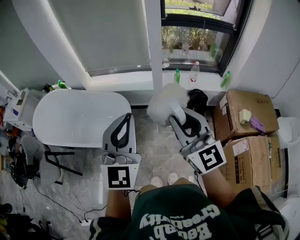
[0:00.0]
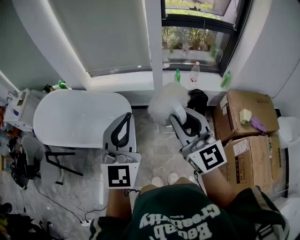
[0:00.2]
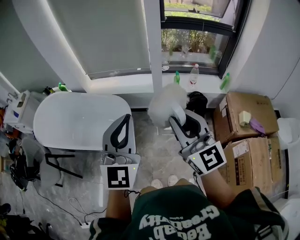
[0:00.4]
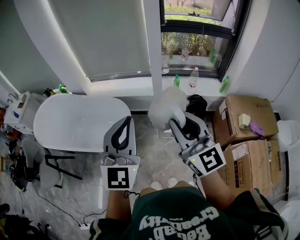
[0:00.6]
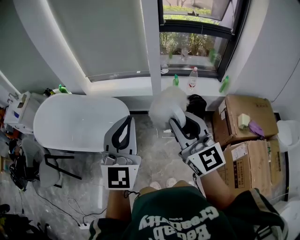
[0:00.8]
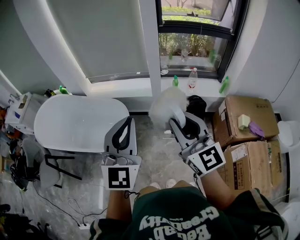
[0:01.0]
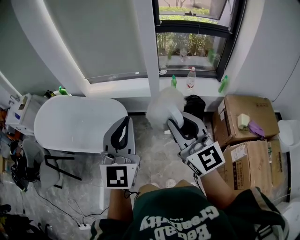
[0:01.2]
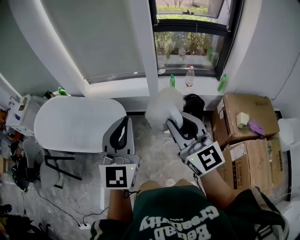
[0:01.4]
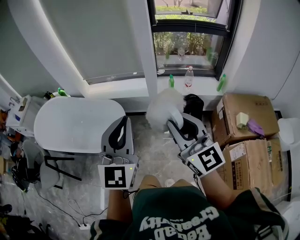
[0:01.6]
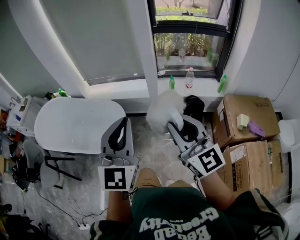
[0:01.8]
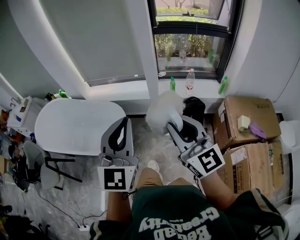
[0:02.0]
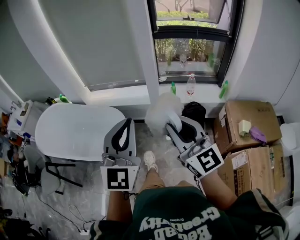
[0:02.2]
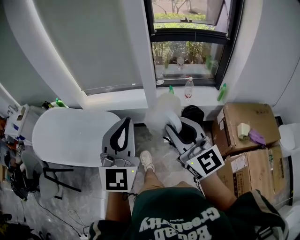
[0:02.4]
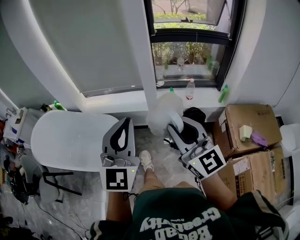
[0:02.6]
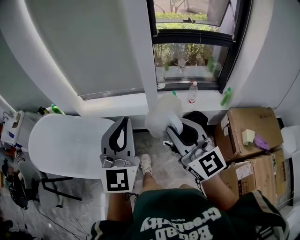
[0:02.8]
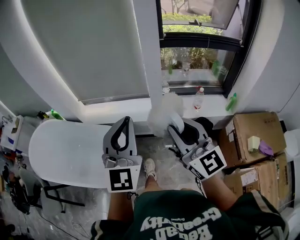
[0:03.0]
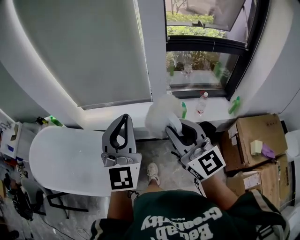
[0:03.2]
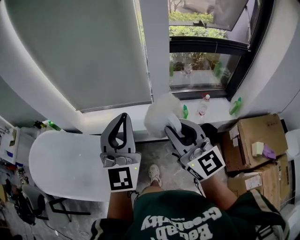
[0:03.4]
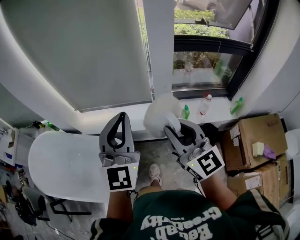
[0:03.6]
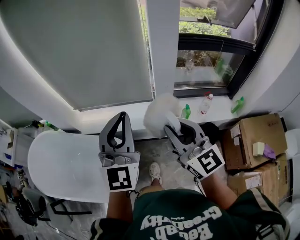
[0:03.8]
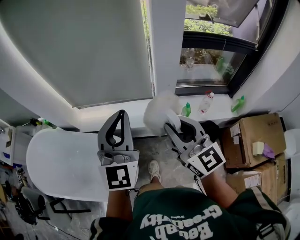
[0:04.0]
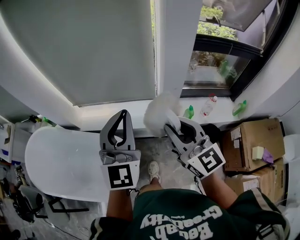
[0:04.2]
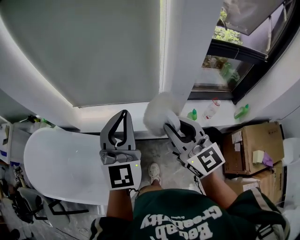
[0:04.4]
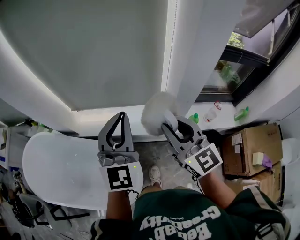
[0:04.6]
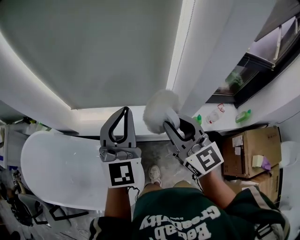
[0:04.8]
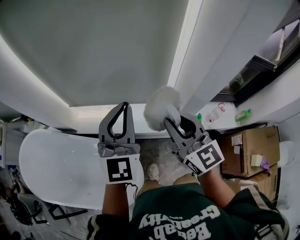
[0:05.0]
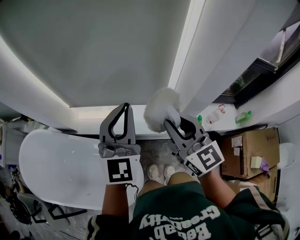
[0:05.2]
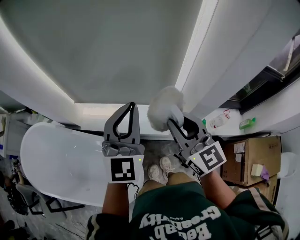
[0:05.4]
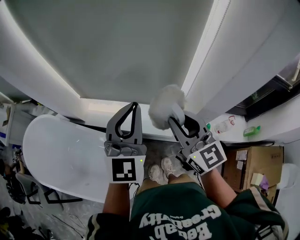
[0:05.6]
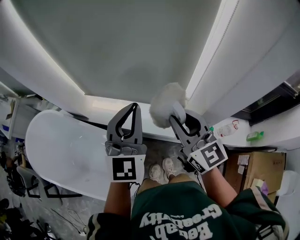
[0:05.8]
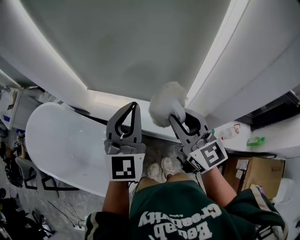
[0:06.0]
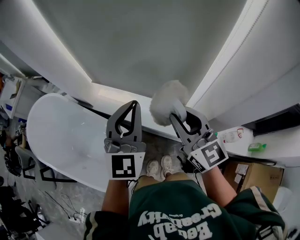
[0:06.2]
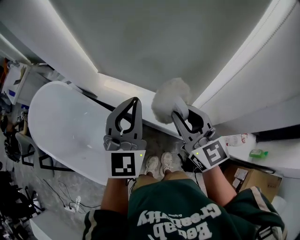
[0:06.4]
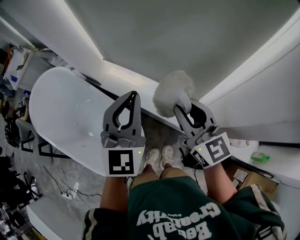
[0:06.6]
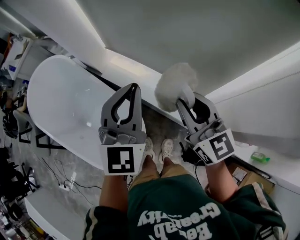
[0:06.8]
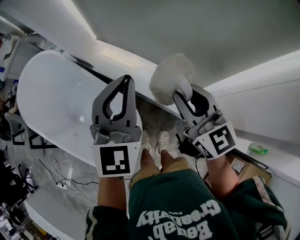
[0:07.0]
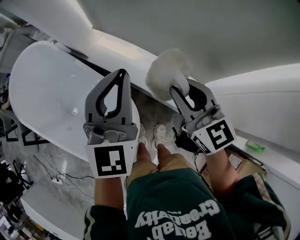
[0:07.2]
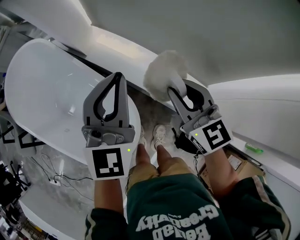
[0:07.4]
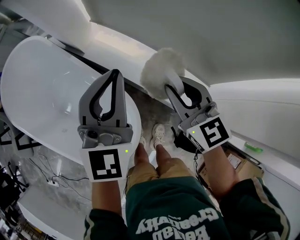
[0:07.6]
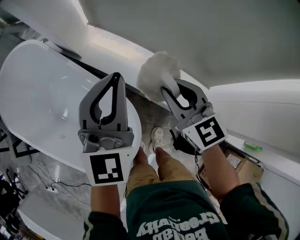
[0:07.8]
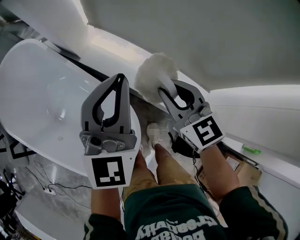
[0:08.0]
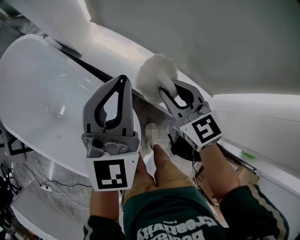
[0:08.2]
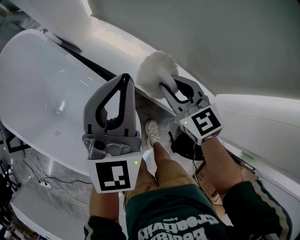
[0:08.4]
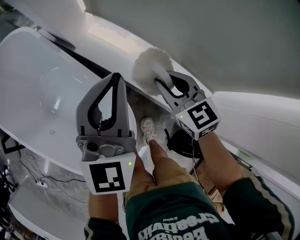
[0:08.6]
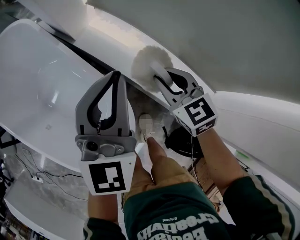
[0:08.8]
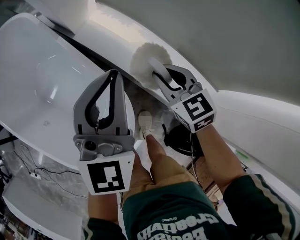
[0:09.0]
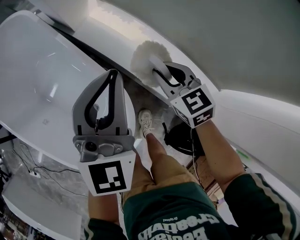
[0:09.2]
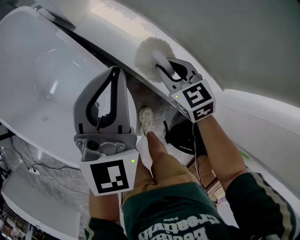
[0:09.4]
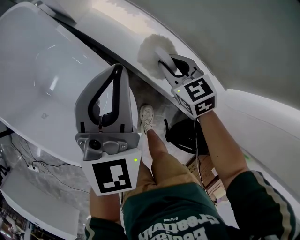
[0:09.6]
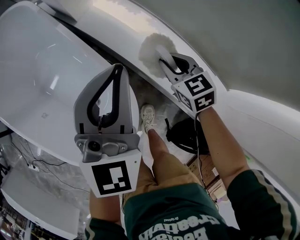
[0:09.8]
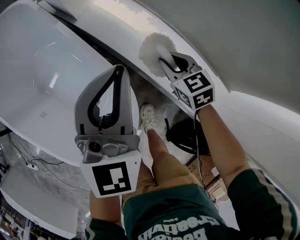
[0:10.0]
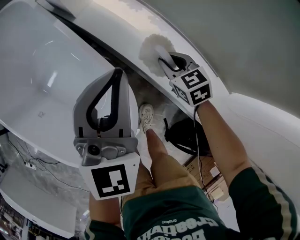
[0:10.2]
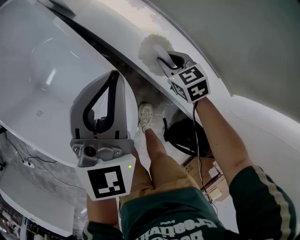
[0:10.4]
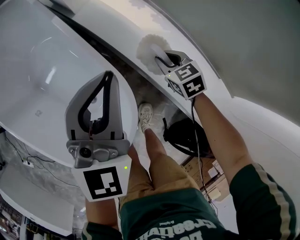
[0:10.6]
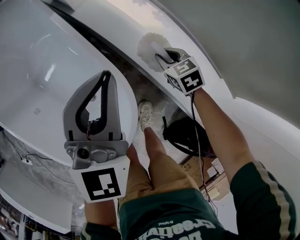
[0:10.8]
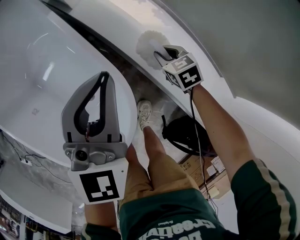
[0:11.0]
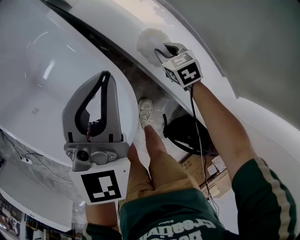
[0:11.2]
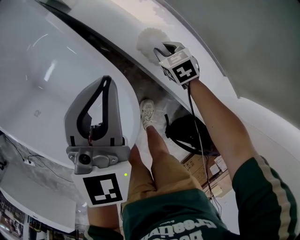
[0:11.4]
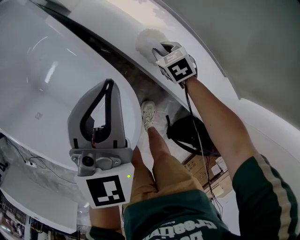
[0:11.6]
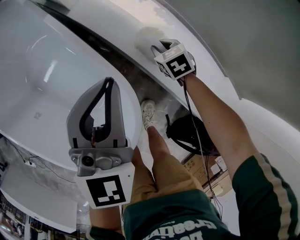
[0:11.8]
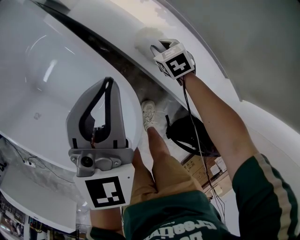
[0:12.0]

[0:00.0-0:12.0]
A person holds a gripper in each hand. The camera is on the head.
0:00.0 to 0:01.6: Both grippers move to the right, about 5 cm.
0:01.6 to 0:03.0: Both grippers move forward, about 25 cm.
0:03.0 to 0:04.4: The two grippers go approximately 25 cm forward.
0:04.4 to 0:06.0: The grippers both shift forward by some 15 cm.
0:06.0 to 0:07.6: The two grippers go about 25 cm downward, to the left and forward. The right gripper changes its angle by some 30 degrees.
0:07.6 to 0:09.0: The right gripper goes approximately 15 cm downward. The left gripper goes approximately 10 cm downward.
0:09.0 to 0:10.4: The left gripper goes roughly 10 cm downward, while the right gripper goes approximately 15 cm downward.
0:10.4 to 0:12.0: The left gripper changes place by about 5 cm. Meanwhile the right gripper heads downward and forward, covering approximately 10 cm.

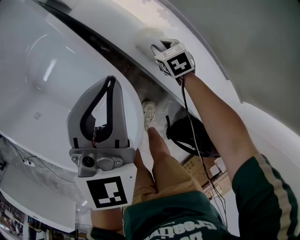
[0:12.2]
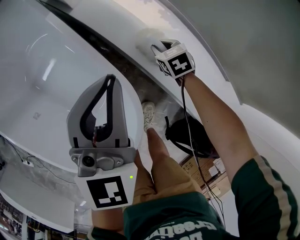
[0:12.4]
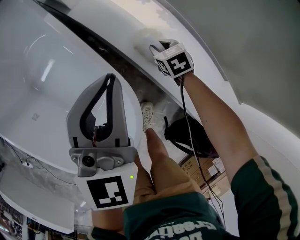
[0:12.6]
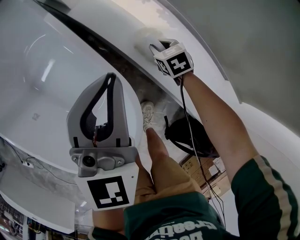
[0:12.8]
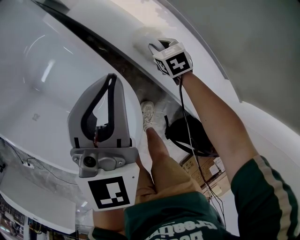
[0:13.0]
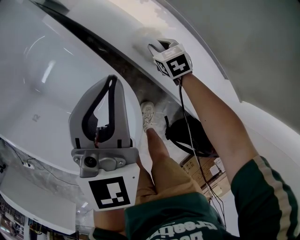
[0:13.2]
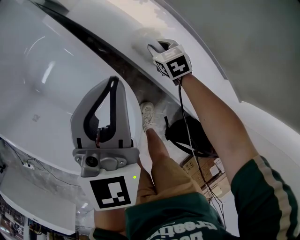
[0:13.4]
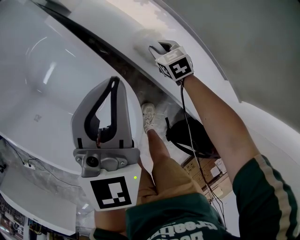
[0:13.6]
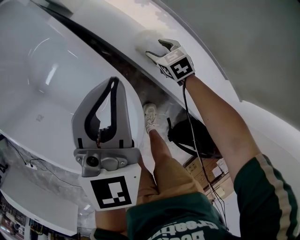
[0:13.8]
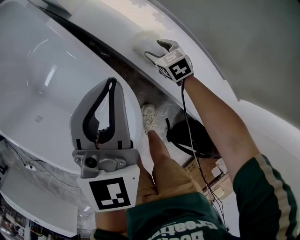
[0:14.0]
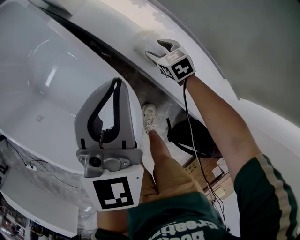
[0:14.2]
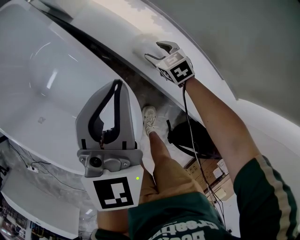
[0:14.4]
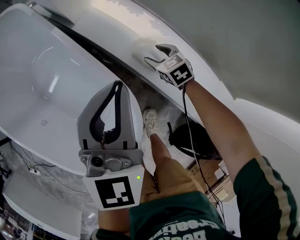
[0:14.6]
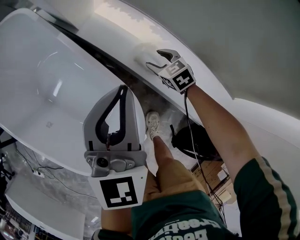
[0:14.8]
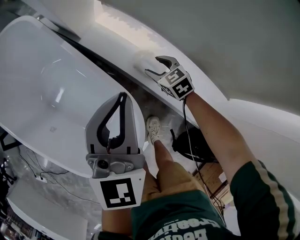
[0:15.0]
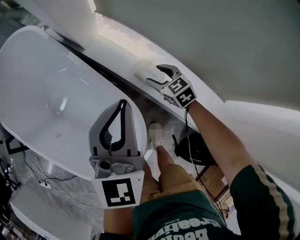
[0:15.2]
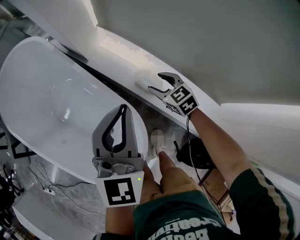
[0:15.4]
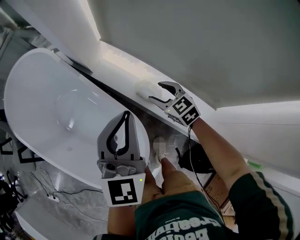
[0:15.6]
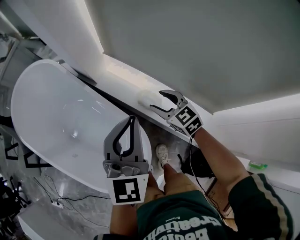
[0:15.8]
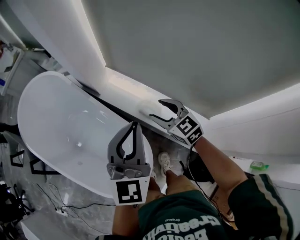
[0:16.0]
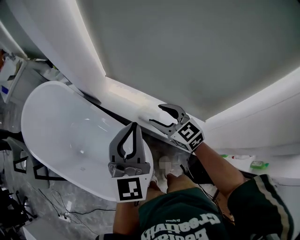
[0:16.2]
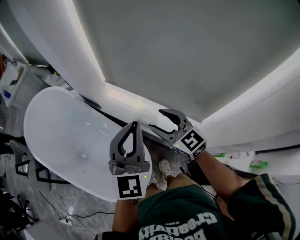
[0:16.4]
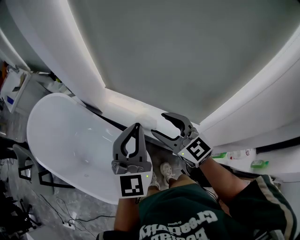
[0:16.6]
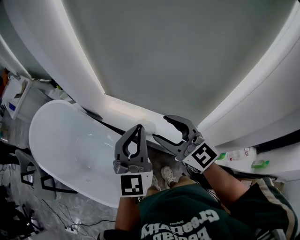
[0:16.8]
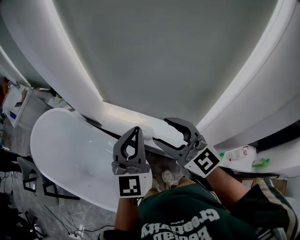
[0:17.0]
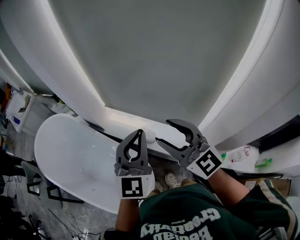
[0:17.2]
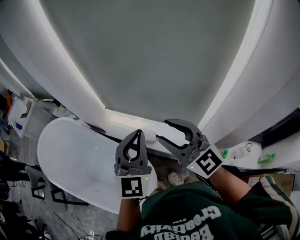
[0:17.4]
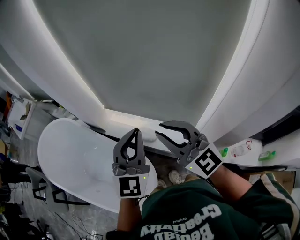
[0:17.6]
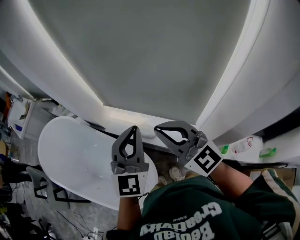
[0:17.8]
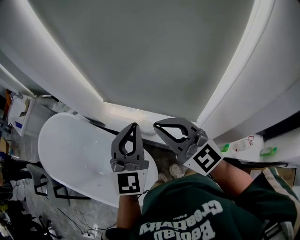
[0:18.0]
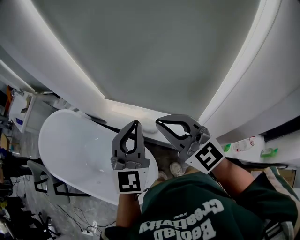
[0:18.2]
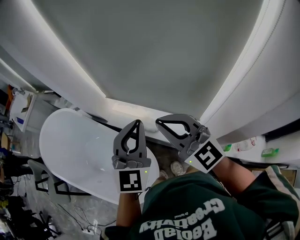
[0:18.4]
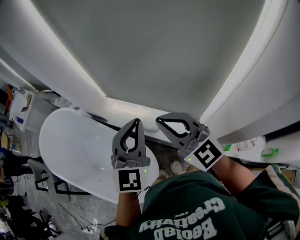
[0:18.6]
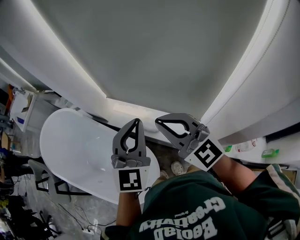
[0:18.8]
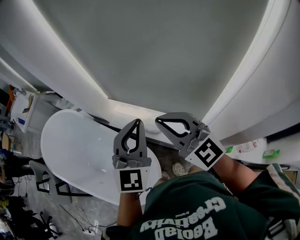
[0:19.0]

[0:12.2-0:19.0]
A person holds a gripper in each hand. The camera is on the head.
0:12.2 to 0:13.6: There are only small adjustments of the grippers.
0:13.6 to 0:15.0: The grippers both shift upward by approximately 10 cm. The right gripper opens.
0:15.0 to 0:16.2: The left gripper travels upward by some 20 cm. Meanwhile the right gripper travels upward by about 35 cm, and changes its angle by some 30 degrees.
0:16.2 to 0:17.6: The left gripper shifts about 10 cm upward and to the right. The right gripper is displaced upward and backward by some 25 cm, swivels approximately 30 degrees, and closes its fingers.
0:17.6 to 0:19.0: The grippers move only a little.

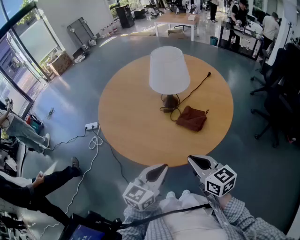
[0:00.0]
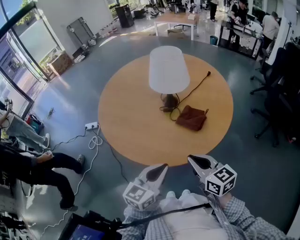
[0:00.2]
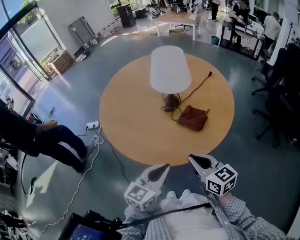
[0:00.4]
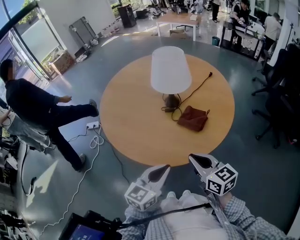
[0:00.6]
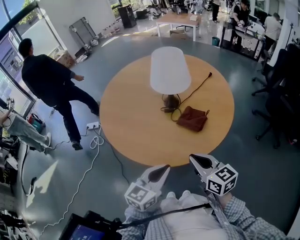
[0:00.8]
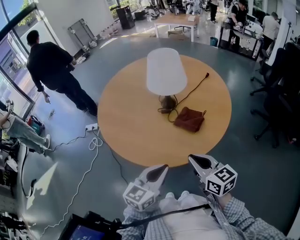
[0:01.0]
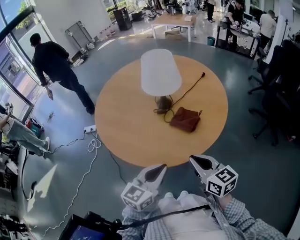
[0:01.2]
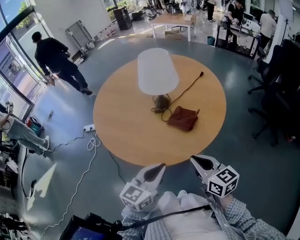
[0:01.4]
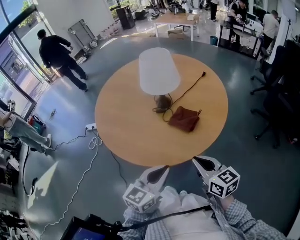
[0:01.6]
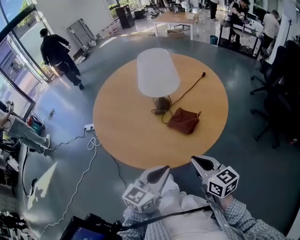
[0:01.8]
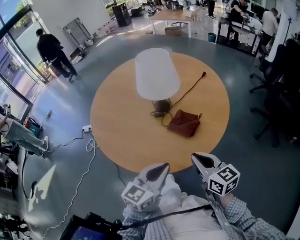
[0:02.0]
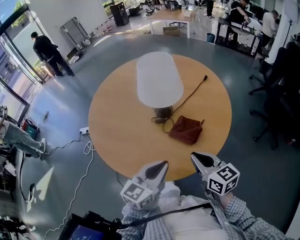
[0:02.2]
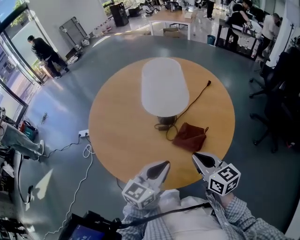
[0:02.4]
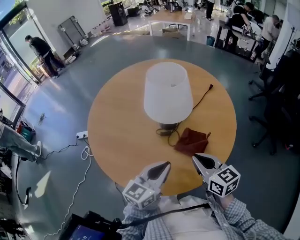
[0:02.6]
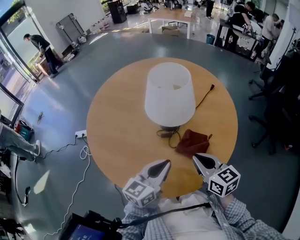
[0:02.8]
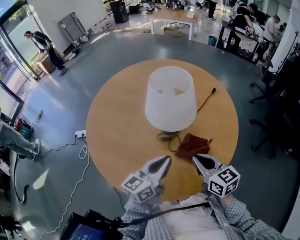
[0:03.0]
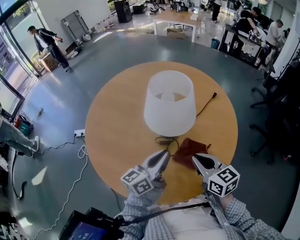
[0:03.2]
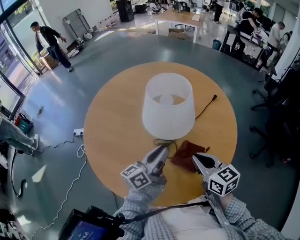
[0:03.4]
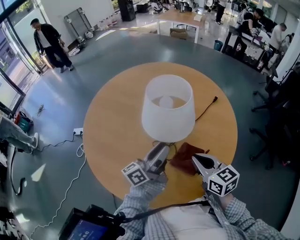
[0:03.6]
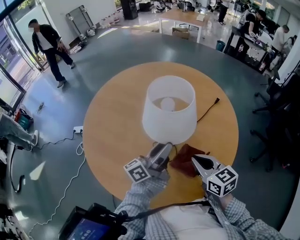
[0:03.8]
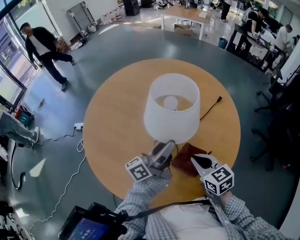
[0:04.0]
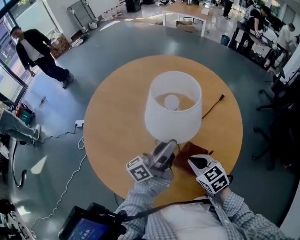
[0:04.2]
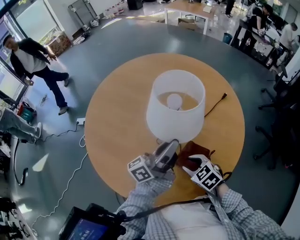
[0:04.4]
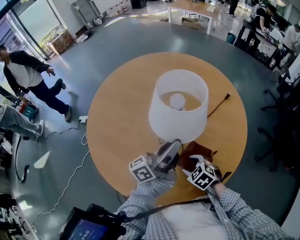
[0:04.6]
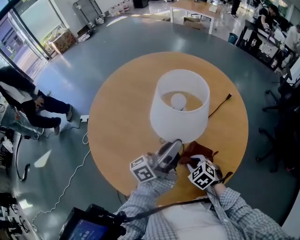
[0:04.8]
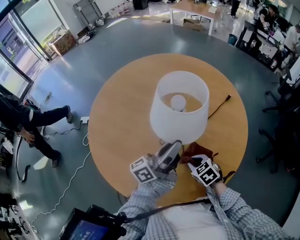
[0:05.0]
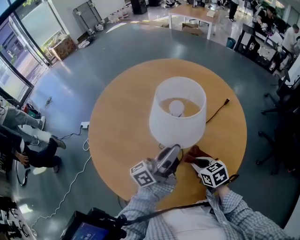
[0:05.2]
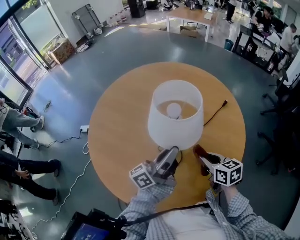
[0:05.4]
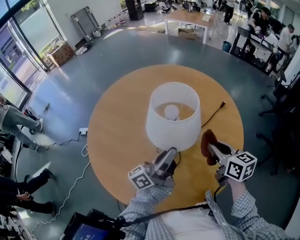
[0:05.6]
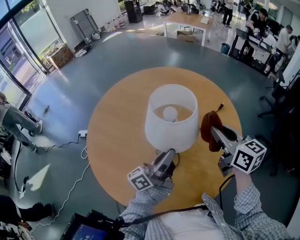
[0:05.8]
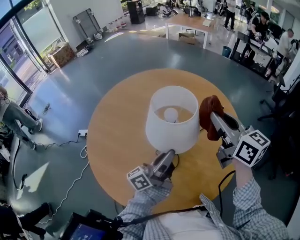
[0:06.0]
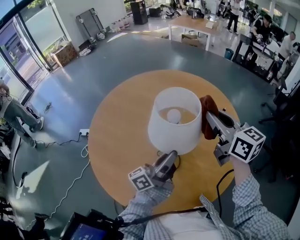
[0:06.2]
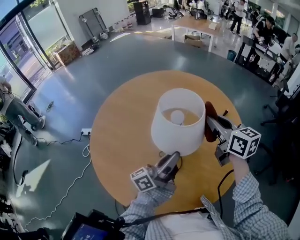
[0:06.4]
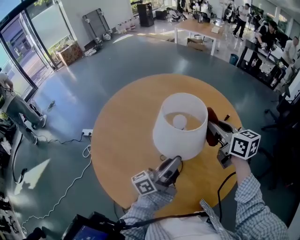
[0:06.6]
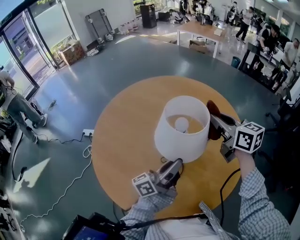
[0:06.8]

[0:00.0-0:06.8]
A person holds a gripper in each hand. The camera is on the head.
0:00.0 to 0:01.4: The right gripper is displaced to the right by about 5 cm.
0:01.4 to 0:02.8: Both grippers travel together forward, about 15 cm.
0:02.8 to 0:04.0: The left gripper is displaced forward by some 15 cm, swivels about 40 degrees, and opens its fingers. The right gripper shifts roughly 5 cm forward.
0:04.0 to 0:05.4: The left gripper closes, while the right gripper goes downward and returns, about 15 cm each way, and opens, then closes again.
0:05.4 to 0:06.8: The right gripper shifts some 25 cm upward and forward, and rotates approximately 20 degrees.
